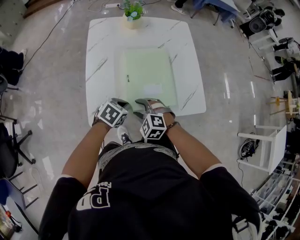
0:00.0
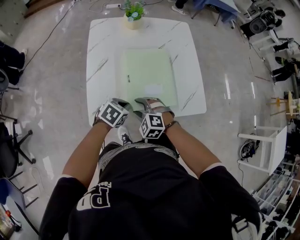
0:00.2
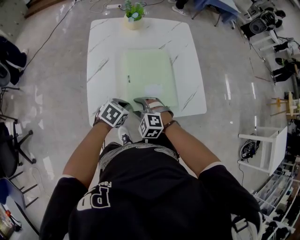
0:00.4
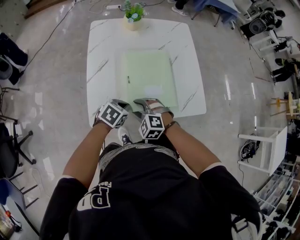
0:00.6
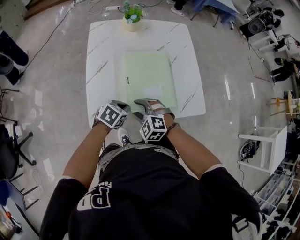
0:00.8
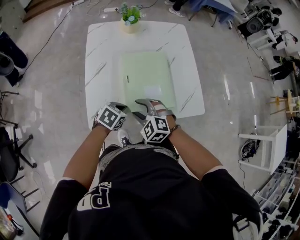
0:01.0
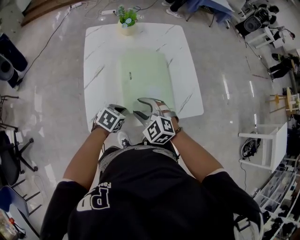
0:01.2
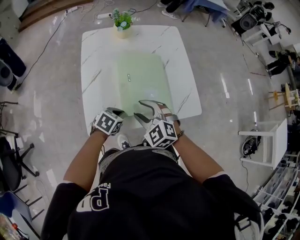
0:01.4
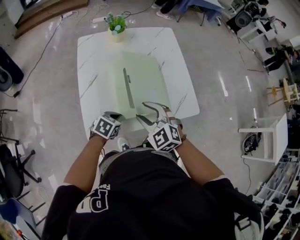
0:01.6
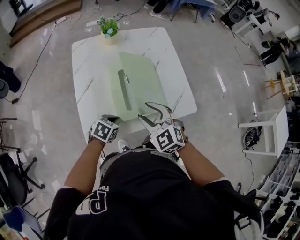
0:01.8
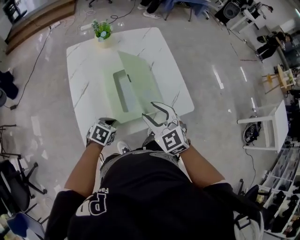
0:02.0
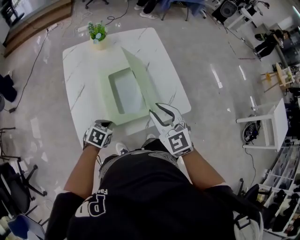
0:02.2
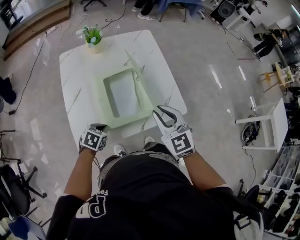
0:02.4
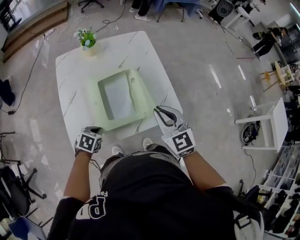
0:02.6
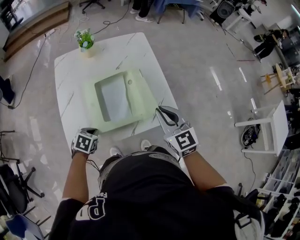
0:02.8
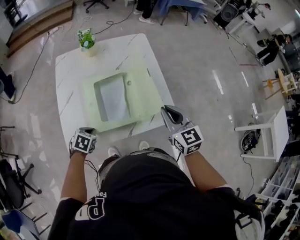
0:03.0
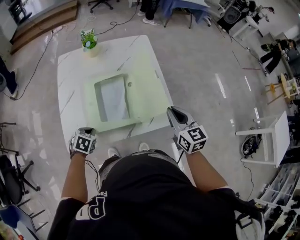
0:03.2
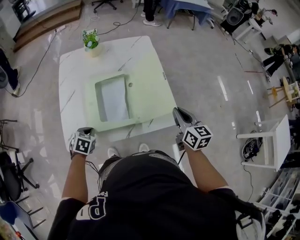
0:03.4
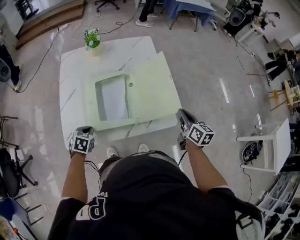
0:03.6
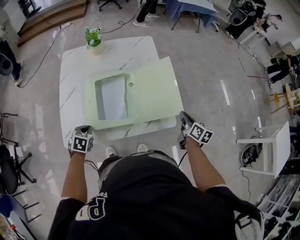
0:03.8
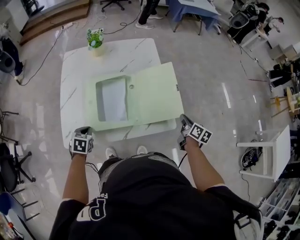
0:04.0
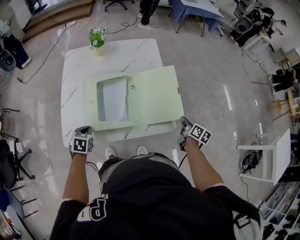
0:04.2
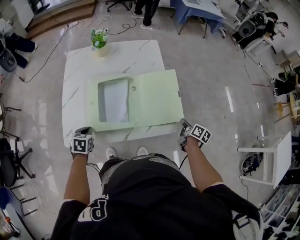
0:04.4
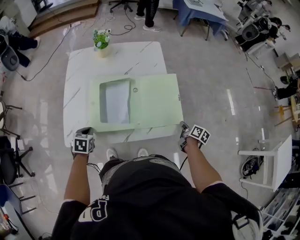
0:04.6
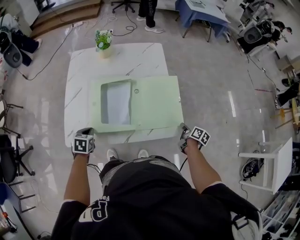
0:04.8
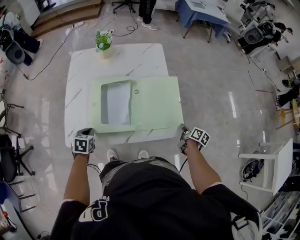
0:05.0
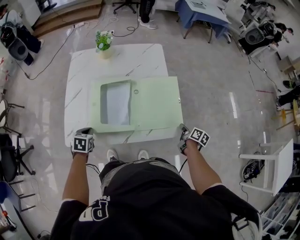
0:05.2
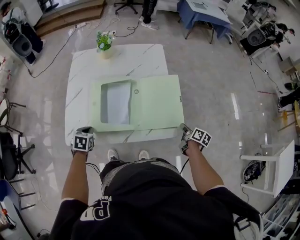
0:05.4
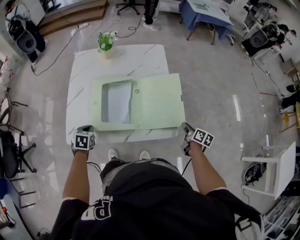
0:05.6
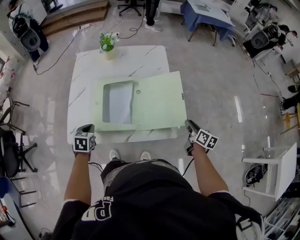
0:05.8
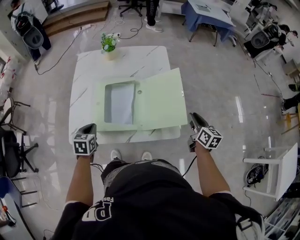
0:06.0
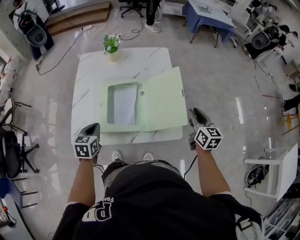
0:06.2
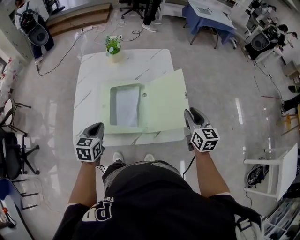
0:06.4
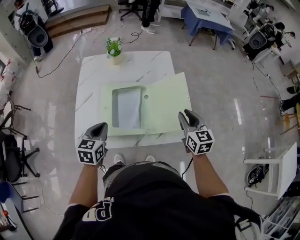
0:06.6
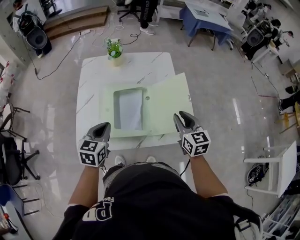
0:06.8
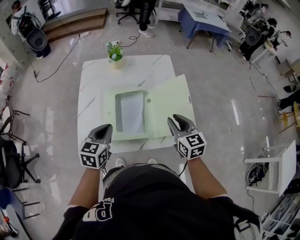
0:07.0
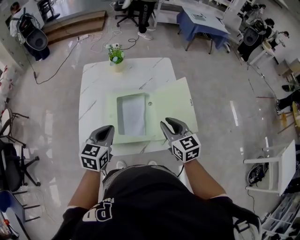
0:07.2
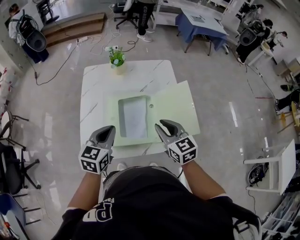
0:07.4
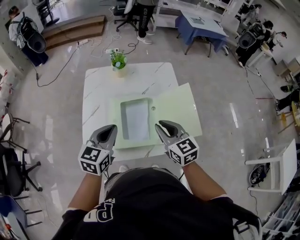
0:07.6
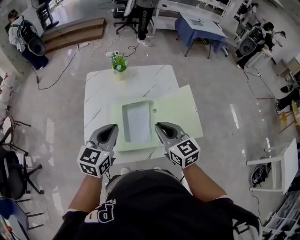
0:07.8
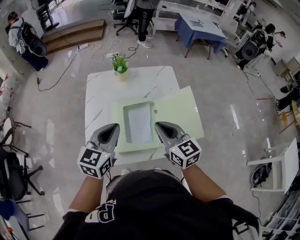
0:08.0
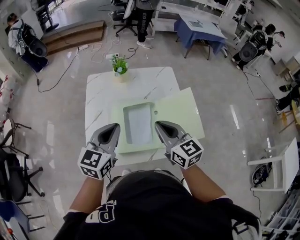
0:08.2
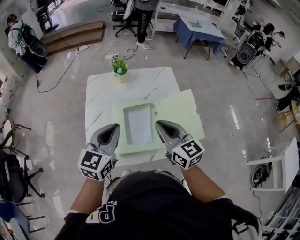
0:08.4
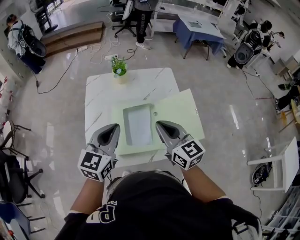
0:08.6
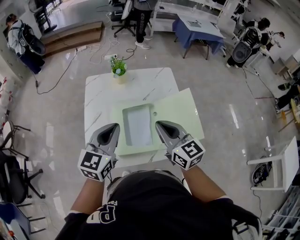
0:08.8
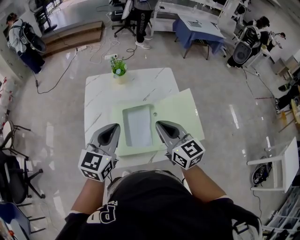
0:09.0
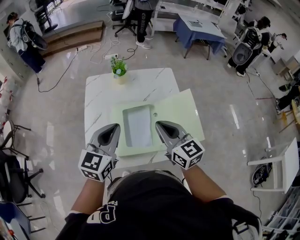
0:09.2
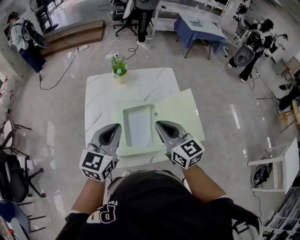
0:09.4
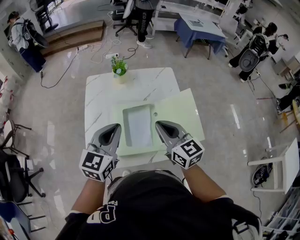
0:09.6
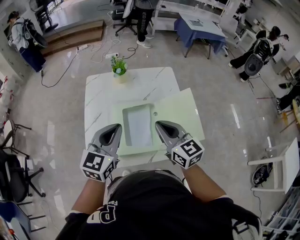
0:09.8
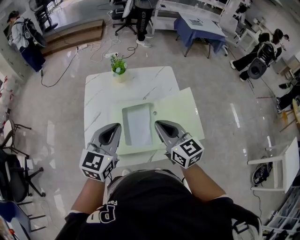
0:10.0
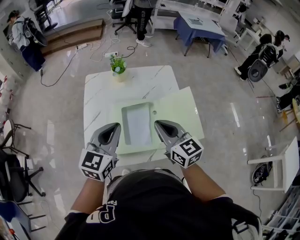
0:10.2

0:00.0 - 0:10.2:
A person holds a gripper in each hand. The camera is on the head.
0:00.0 - 0:01.4: The right gripper heads upward, covering about 10 cm, and rotates some 20 degrees.
0:01.4 - 0:03.0: The right gripper moves to the right, about 25 cm, turns by some 50 degrees, and closes up.
0:03.0 - 0:04.4: The left gripper swivels approximately 20 degrees, while the right gripper shifts approximately 30 cm downward and to the right, and rolls clockwise, seen from behind, by roughly 60 degrees.
0:04.4 - 0:05.8: The right gripper is displaced upward by about 5 cm, and opens its fingers.
0:05.8 - 0:07.2: The right gripper goes about 30 cm to the left and upward, and rolls counterclockwise, seen from behind, by approximately 40 degrees. The left gripper travels upward by some 15 cm, and swivels about 30 degrees.
0:07.2 - 0:08.8: The left gripper is displaced upward by some 10 cm. Meanwhile the right gripper goes some 10 cm upward and to the left, and closes up.
0:08.8 - 0:10.2: The grippers stay close to where they were, moving slightly.

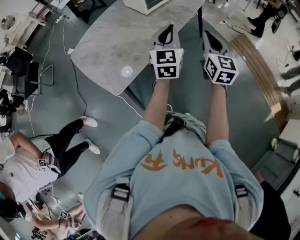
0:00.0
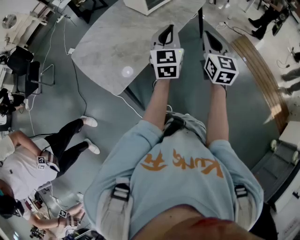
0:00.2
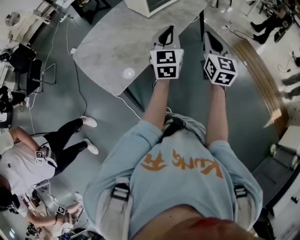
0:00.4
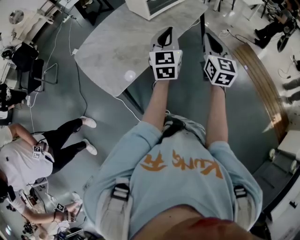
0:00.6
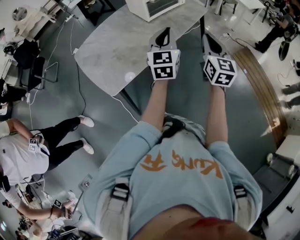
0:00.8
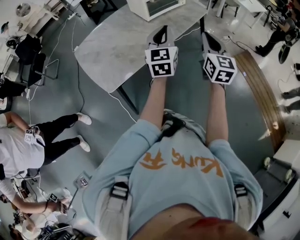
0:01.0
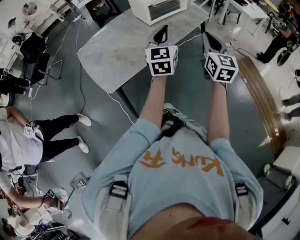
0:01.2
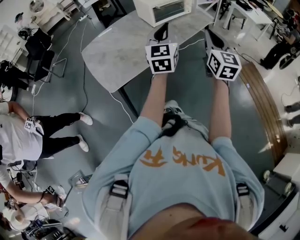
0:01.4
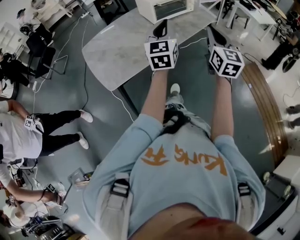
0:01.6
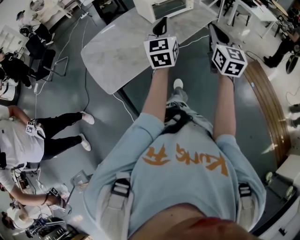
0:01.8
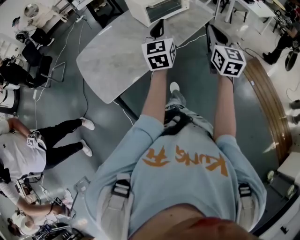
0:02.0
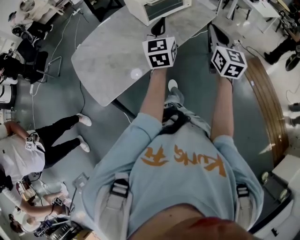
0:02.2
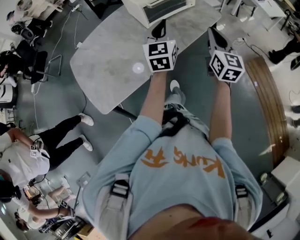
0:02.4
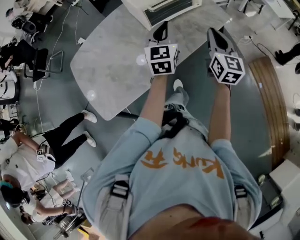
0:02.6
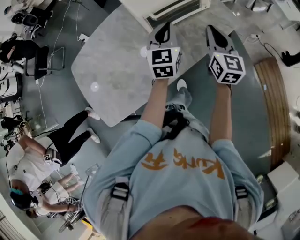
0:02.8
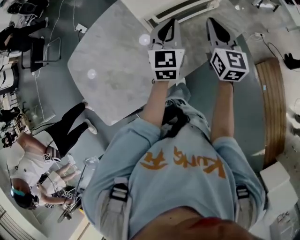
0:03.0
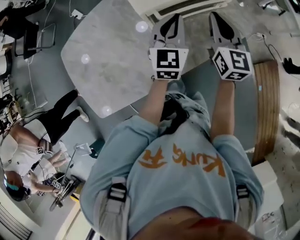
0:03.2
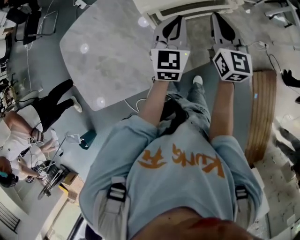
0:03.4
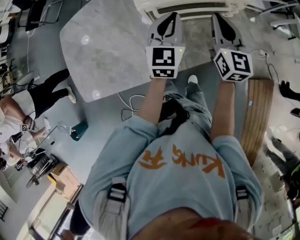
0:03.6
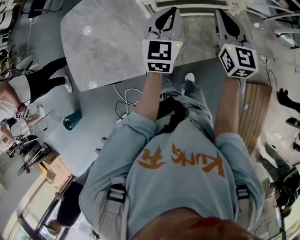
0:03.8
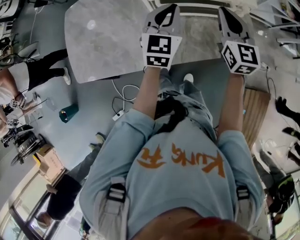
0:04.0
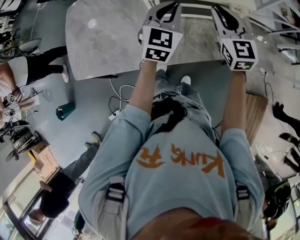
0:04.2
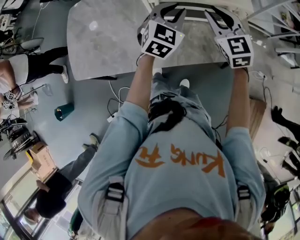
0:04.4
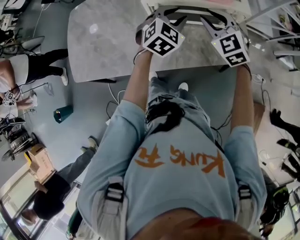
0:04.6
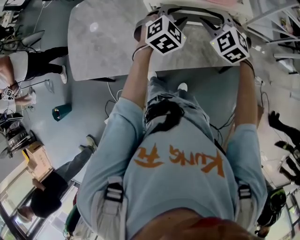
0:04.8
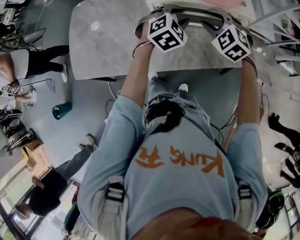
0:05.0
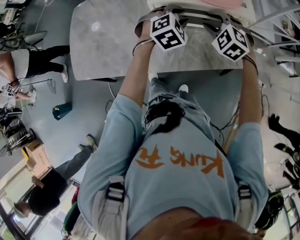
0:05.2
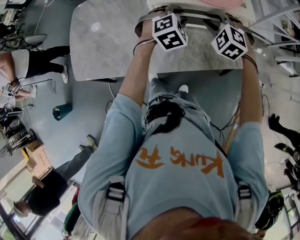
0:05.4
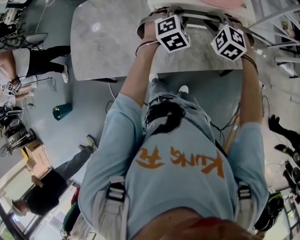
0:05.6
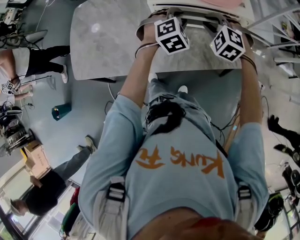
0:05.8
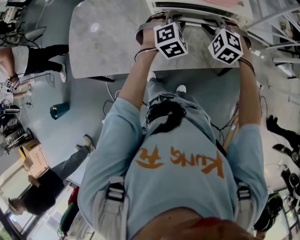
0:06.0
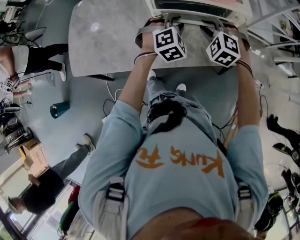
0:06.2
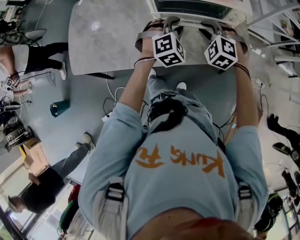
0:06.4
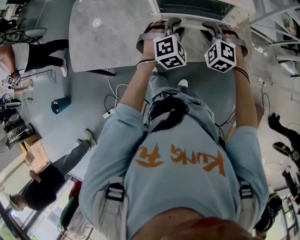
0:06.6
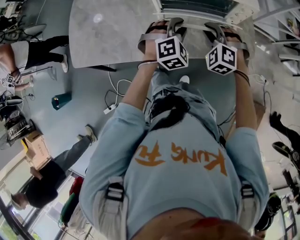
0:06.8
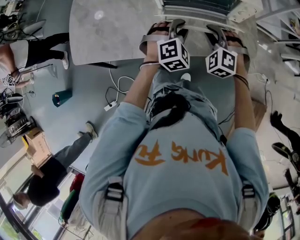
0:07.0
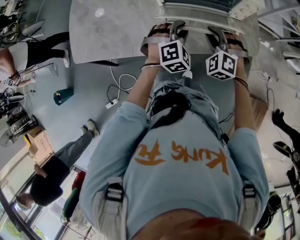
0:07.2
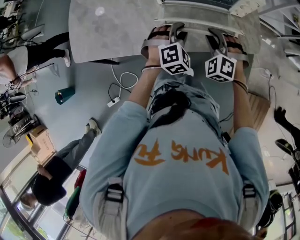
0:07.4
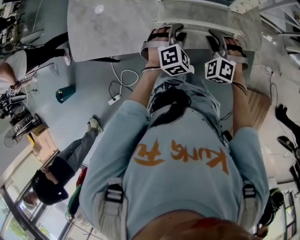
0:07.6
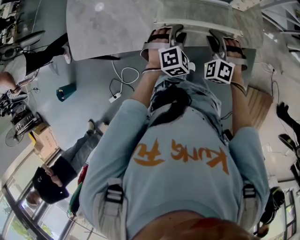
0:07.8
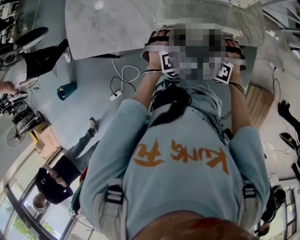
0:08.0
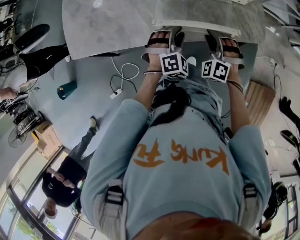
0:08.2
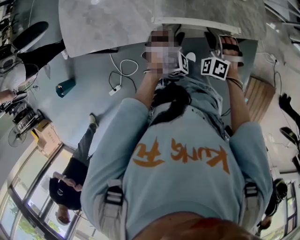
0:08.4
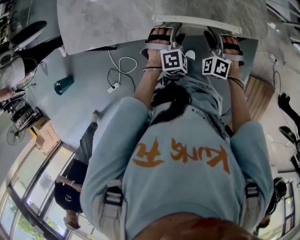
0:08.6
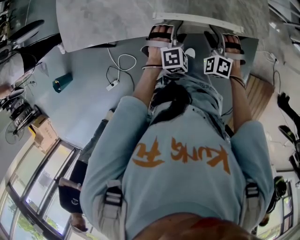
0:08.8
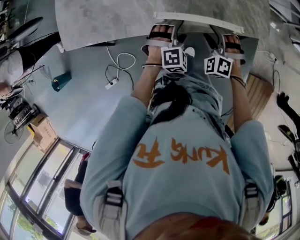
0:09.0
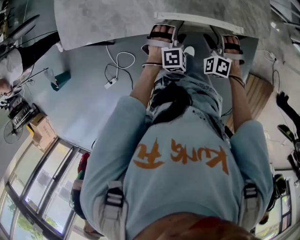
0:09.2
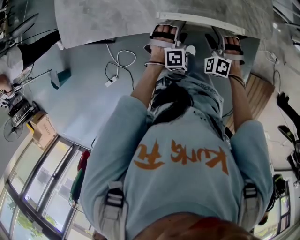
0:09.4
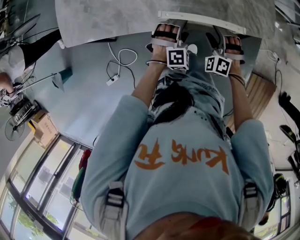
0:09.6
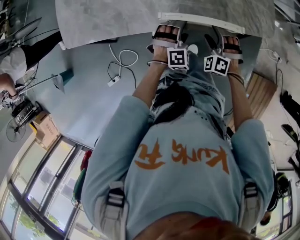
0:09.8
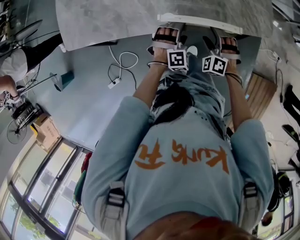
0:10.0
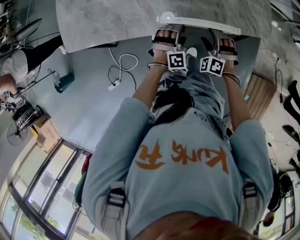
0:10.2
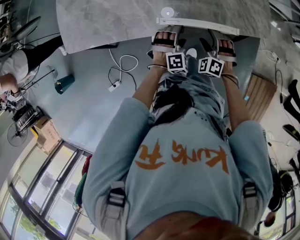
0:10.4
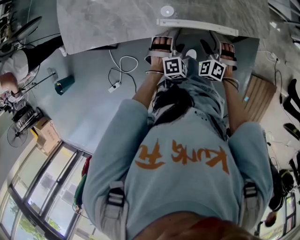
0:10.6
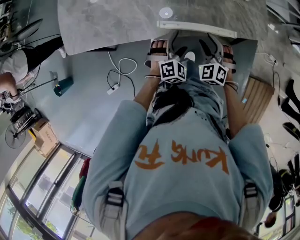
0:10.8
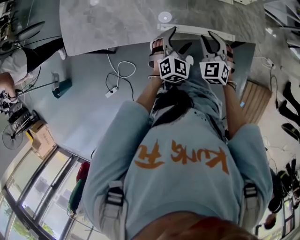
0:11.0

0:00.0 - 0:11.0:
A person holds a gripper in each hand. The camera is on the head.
0:00.0 - 0:01.6: The left gripper is displaced upward by about 5 cm. Meanwhile the right gripper moves to the right and upward, some 10 cm.
0:01.6 - 0:03.2: Both grippers are carried forward, approximately 50 cm.
0:03.2 - 0:04.8: The left gripper ends up some 5 cm from where it was, and turns by approximately 40 degrees, while the right gripper changes place by approximately 5 cm, turns by approximately 70 degrees, and opens its fingers.
0:04.8 - 0:06.2: The right gripper ends up about 5 cm from where it was; the left gripper ends up roughly 5 cm from where it was.
0:06.2 - 0:07.8: The two grippers go about 15 cm downward and backward.
0:07.8 - 0:09.4: The right gripper is displaced downward by roughly 10 cm, and opens its fingers. The left gripper heads downward and backward, covering approximately 10 cm, and opens.
0:09.4 - 0:11.0: The two grippers go some 5 cm upward. The right gripper rotates roughly 30 degrees, and closes up. Meanwhile the left gripper swivels some 40 degrees.

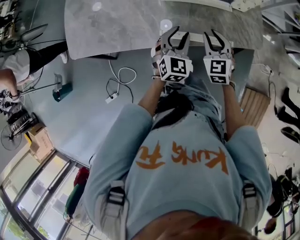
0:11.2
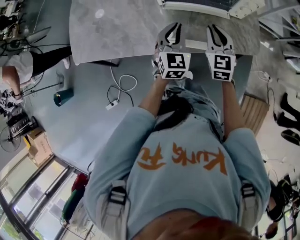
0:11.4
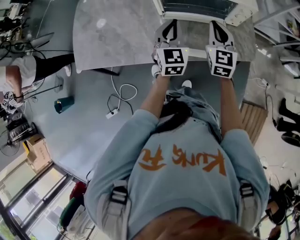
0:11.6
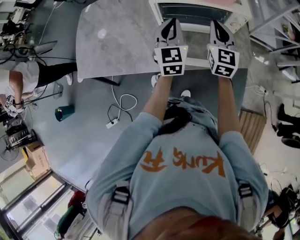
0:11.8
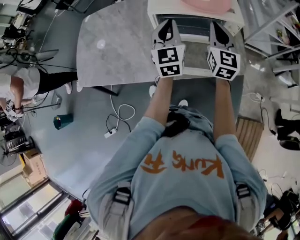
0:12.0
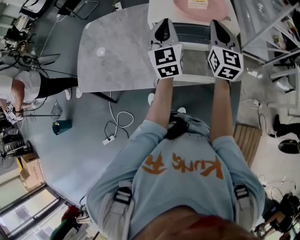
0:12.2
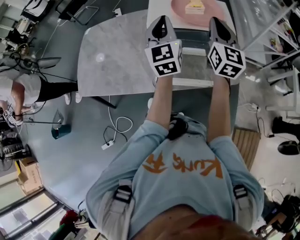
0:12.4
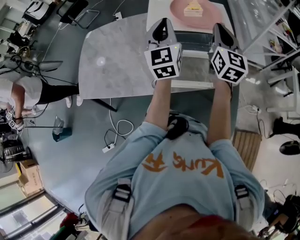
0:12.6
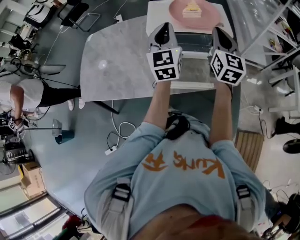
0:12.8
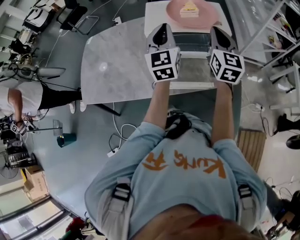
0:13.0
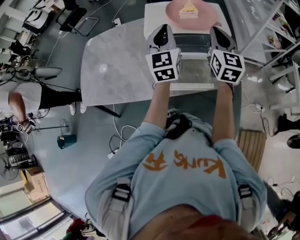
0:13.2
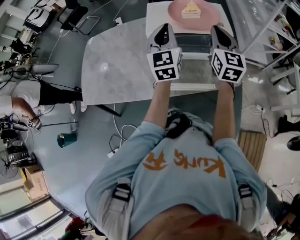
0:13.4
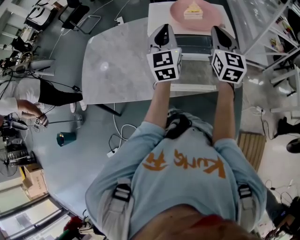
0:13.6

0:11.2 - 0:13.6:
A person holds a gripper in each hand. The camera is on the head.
0:11.2 - 0:12.4: The two grippers go some 30 cm upward. The left gripper tips its fingers upward by roughly 30 degrees, and closes up. Meanwhile the right gripper swivels approximately 40 degrees.
0:12.4 - 0:13.6: There are only small adjustments of the grippers.
